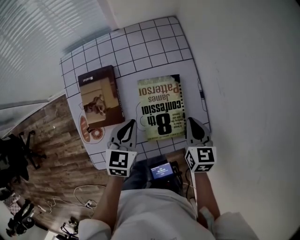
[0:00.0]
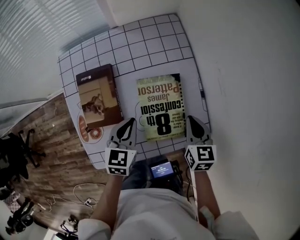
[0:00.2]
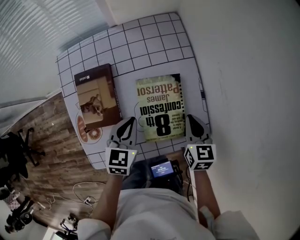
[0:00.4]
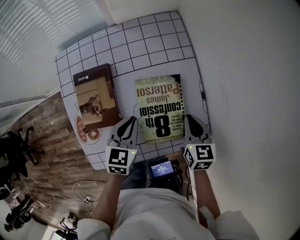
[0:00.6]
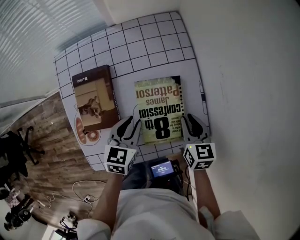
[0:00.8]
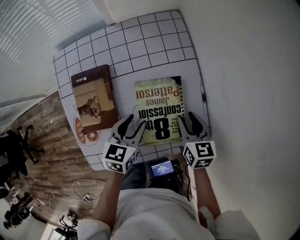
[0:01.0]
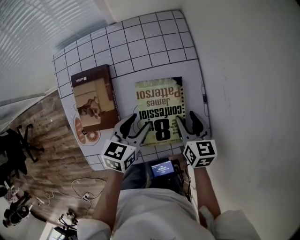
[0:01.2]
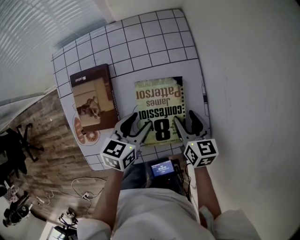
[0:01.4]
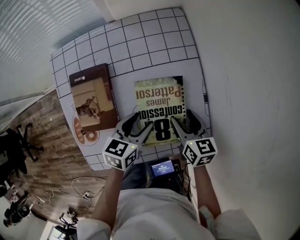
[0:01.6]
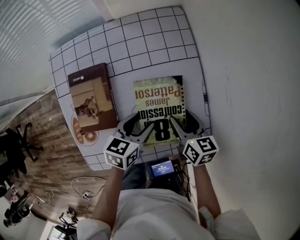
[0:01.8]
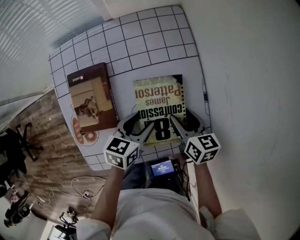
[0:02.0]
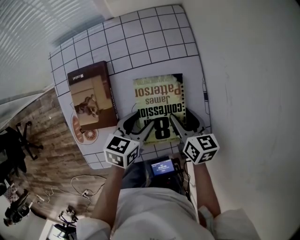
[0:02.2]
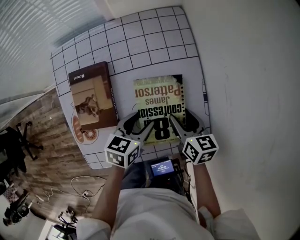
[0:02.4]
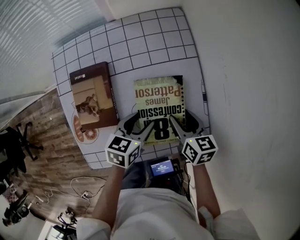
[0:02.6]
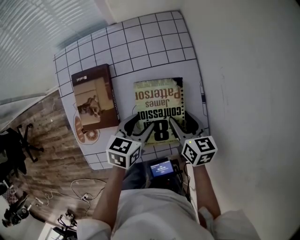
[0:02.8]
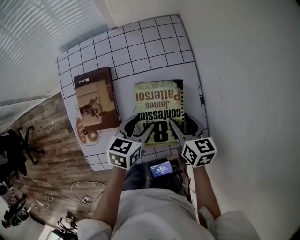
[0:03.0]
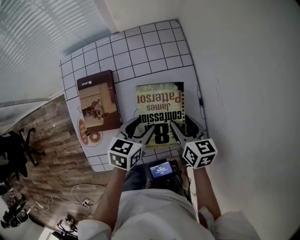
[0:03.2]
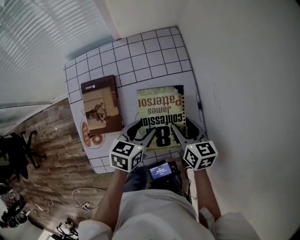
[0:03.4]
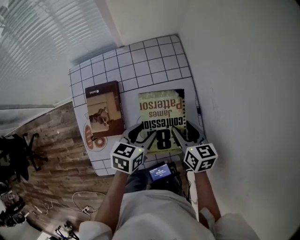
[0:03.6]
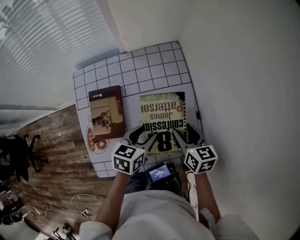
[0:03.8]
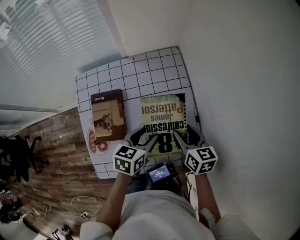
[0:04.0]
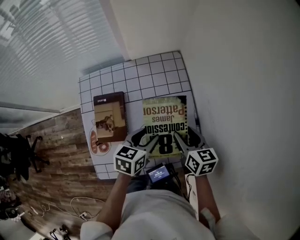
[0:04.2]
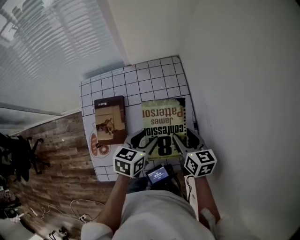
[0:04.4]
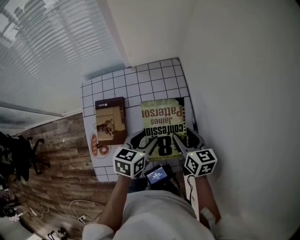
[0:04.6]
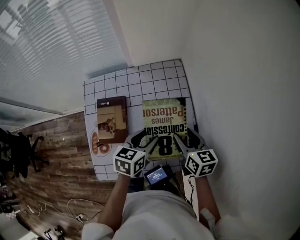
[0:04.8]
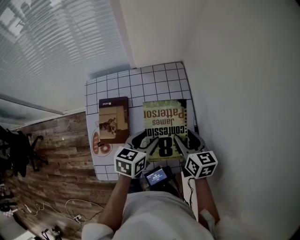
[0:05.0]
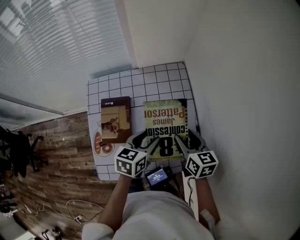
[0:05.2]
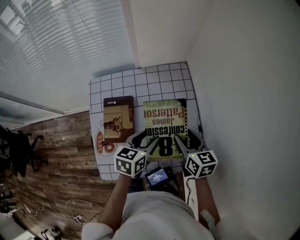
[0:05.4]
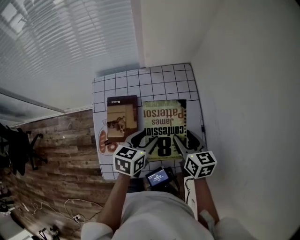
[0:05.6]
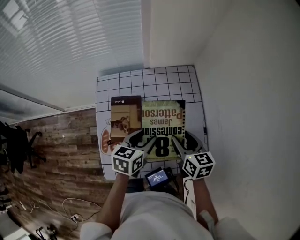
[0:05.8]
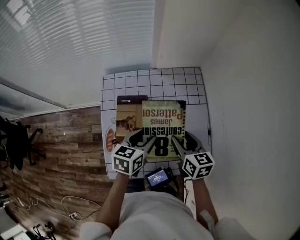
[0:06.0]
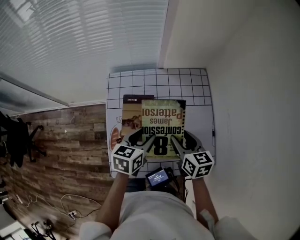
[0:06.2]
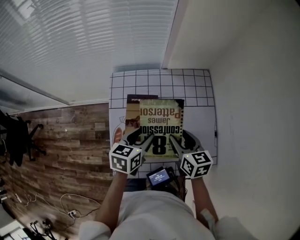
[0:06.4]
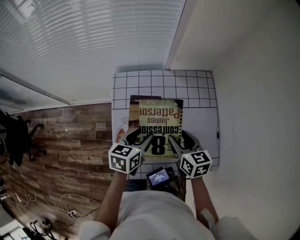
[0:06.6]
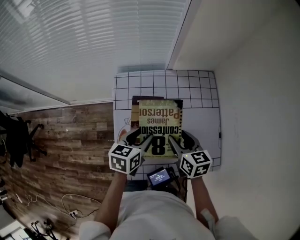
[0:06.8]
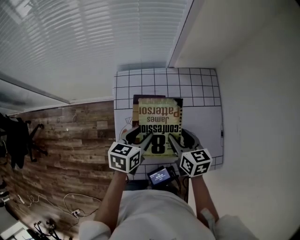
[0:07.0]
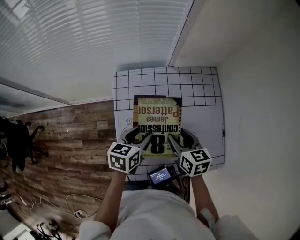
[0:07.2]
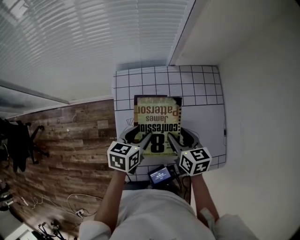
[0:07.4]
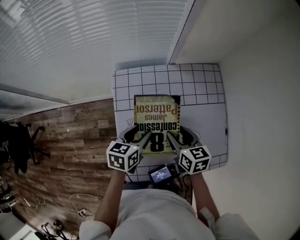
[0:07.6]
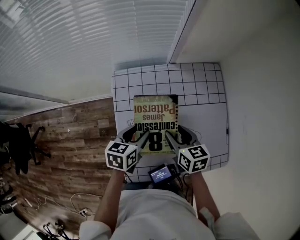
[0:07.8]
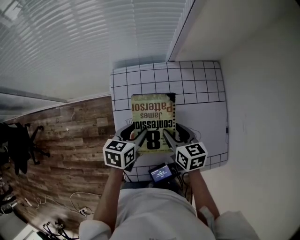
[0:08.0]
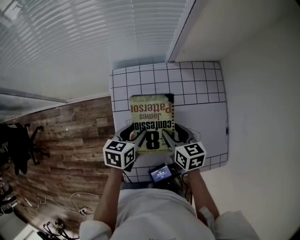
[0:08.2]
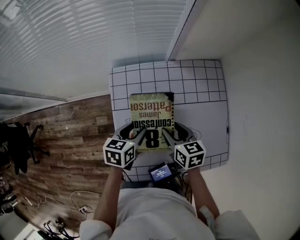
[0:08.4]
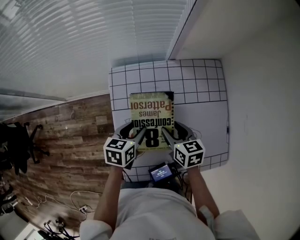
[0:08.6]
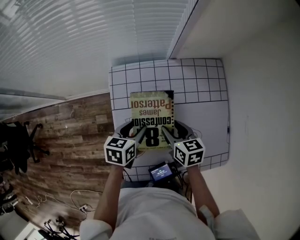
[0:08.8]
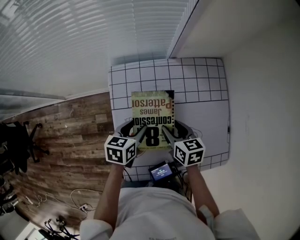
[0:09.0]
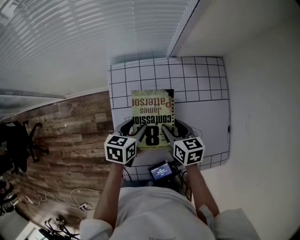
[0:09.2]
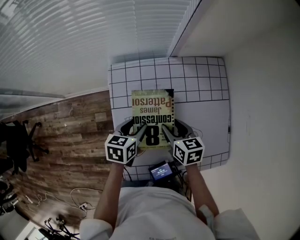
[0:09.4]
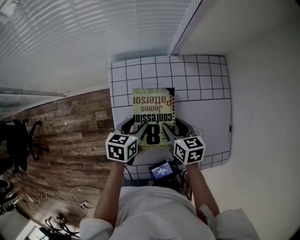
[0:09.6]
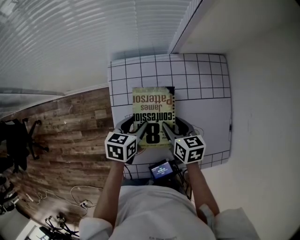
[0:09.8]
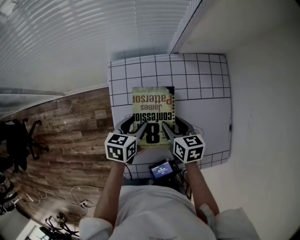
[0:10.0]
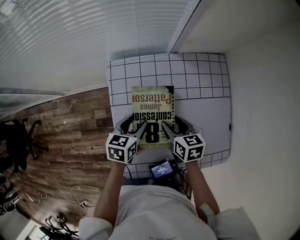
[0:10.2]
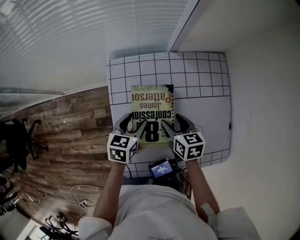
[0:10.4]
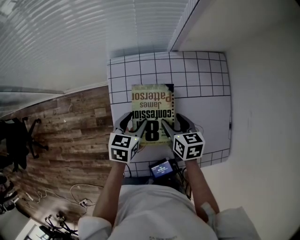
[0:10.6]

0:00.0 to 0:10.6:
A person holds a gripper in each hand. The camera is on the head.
0:00.0 to 0:01.6: The right gripper is displaced downward by some 5 cm, and opens its fingers, while the left gripper shifts by roughly 5 cm, turns by some 20 degrees, and opens its fingers.
0:01.6 to 0:03.0: There are only small adjustments of the grippers.
0:03.0 to 0:04.6: Both grippers move upward, about 10 cm.
0:04.6 to 0:06.0: Both grippers move to the left, approximately 10 cm.
0:06.0 to 0:07.6: Both grippers move to the left, approximately 10 cm.
0:07.6 to 0:09.0: The left gripper ends up roughly 5 cm from where it was. The right gripper ends up approximately 5 cm from where it was.
0:09.0 to 0:10.6: The grippers make only small movements.

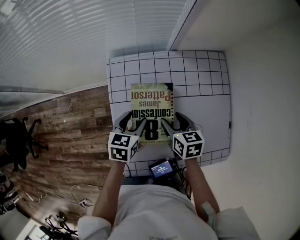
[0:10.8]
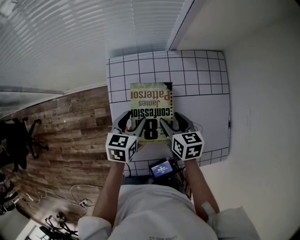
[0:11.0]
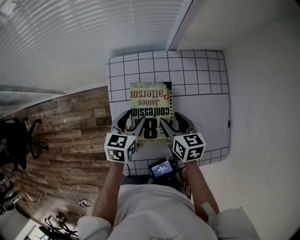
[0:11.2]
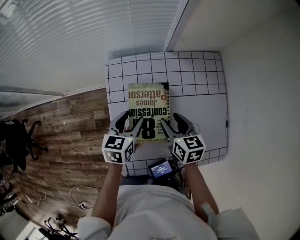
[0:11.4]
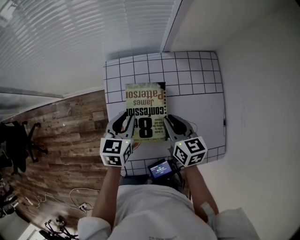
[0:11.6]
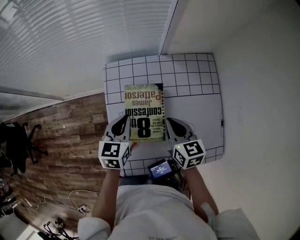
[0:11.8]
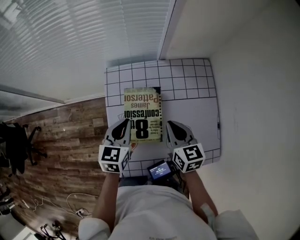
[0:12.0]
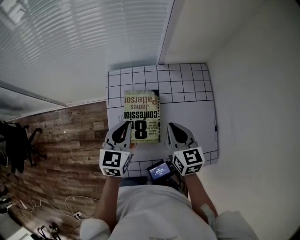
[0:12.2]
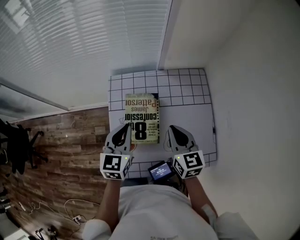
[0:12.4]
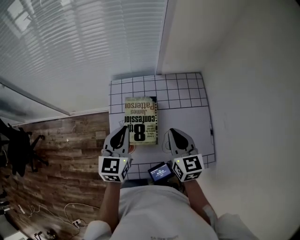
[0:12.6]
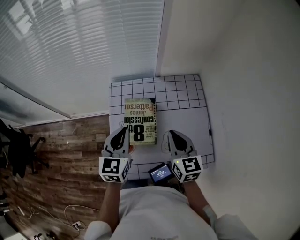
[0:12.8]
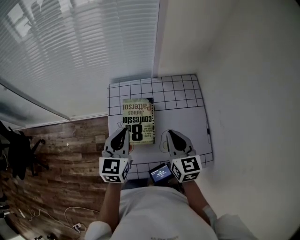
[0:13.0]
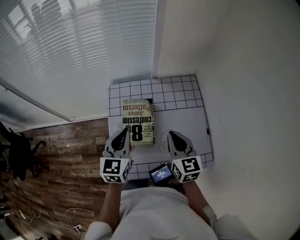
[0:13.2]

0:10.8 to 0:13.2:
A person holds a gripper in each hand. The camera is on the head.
0:10.8 to 0:12.0: The grippers both shift upward by some 10 cm. The left gripper closes its fingers. Meanwhile the right gripper closes its fingers.
0:12.0 to 0:13.2: Both grippers travel together upward and backward, approximately 10 cm.

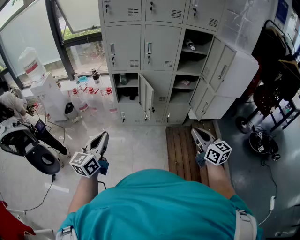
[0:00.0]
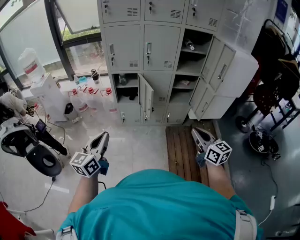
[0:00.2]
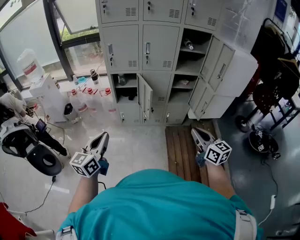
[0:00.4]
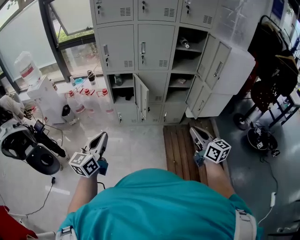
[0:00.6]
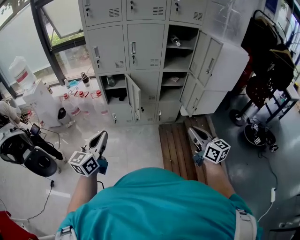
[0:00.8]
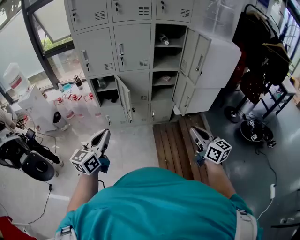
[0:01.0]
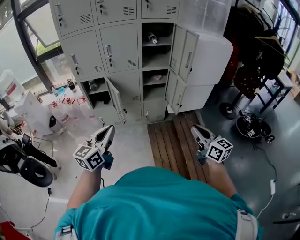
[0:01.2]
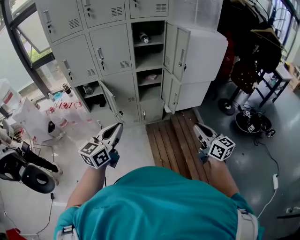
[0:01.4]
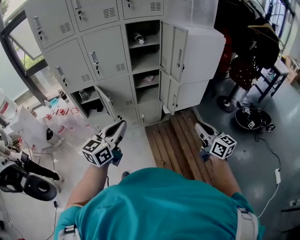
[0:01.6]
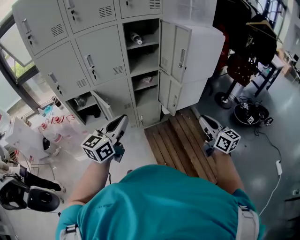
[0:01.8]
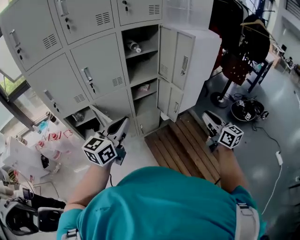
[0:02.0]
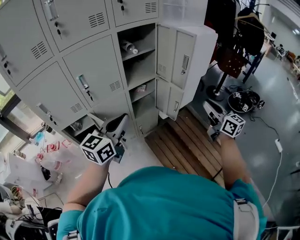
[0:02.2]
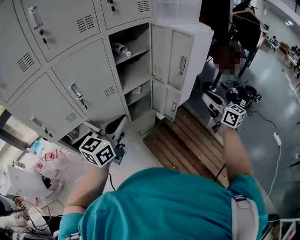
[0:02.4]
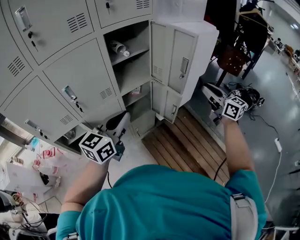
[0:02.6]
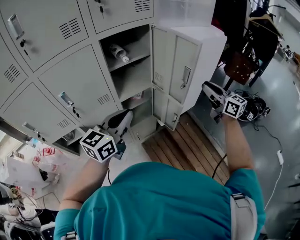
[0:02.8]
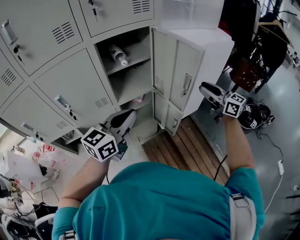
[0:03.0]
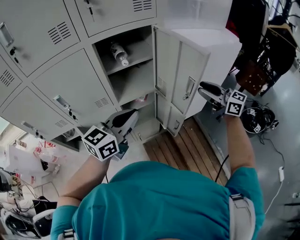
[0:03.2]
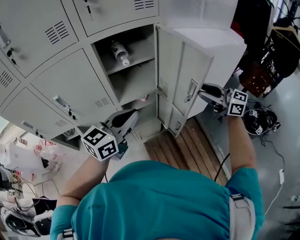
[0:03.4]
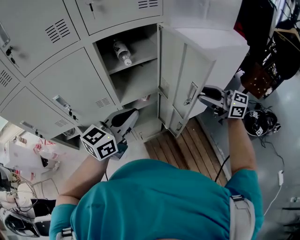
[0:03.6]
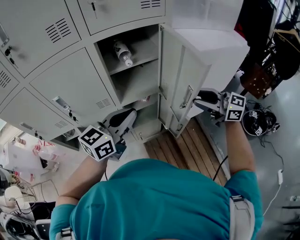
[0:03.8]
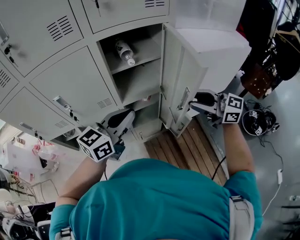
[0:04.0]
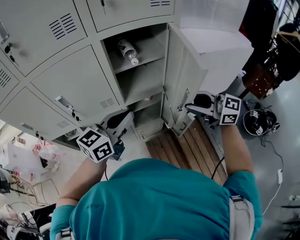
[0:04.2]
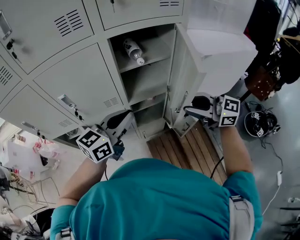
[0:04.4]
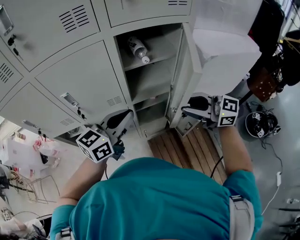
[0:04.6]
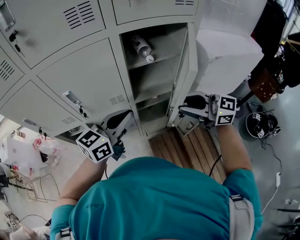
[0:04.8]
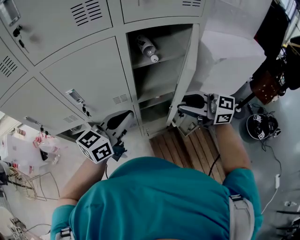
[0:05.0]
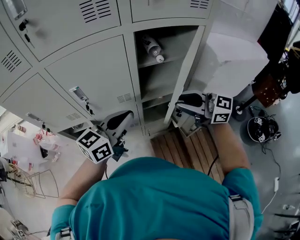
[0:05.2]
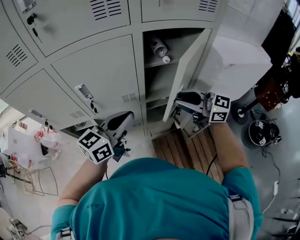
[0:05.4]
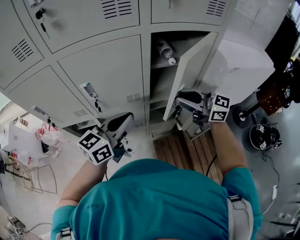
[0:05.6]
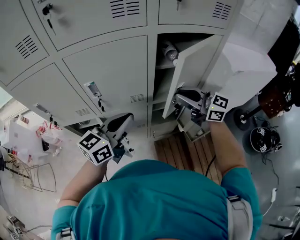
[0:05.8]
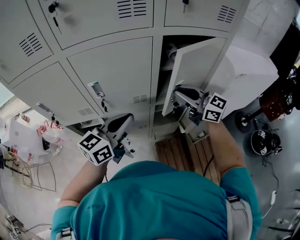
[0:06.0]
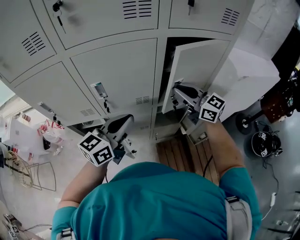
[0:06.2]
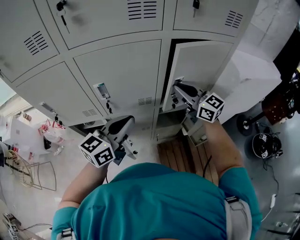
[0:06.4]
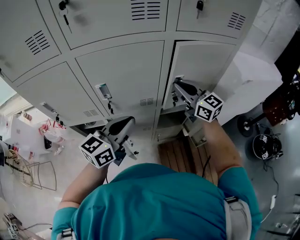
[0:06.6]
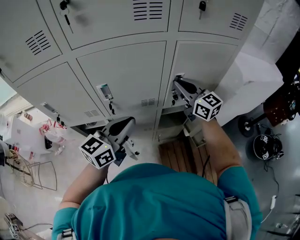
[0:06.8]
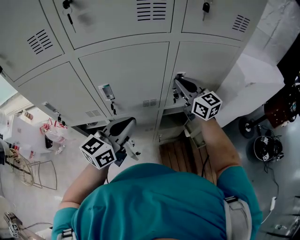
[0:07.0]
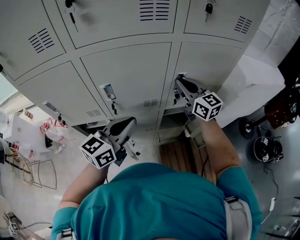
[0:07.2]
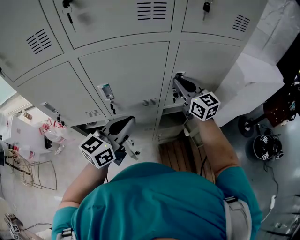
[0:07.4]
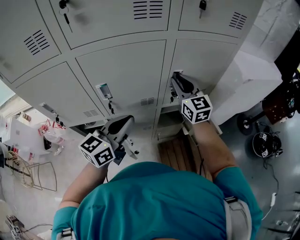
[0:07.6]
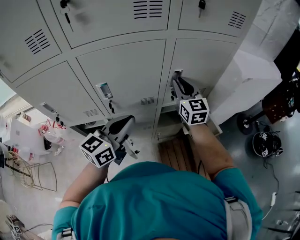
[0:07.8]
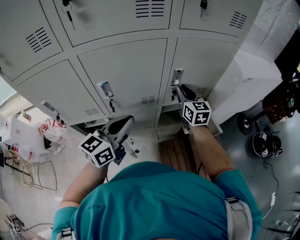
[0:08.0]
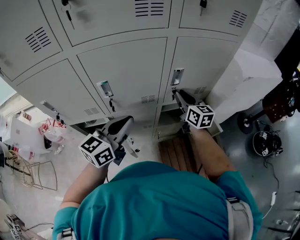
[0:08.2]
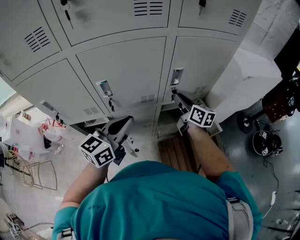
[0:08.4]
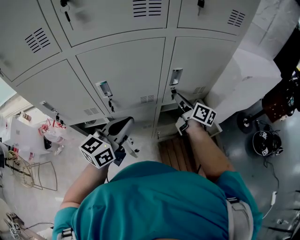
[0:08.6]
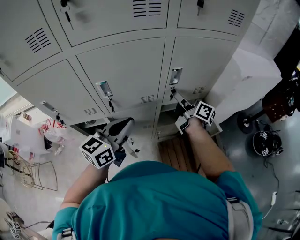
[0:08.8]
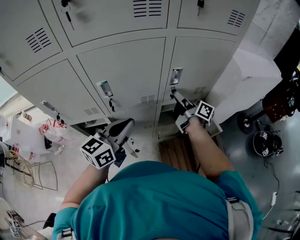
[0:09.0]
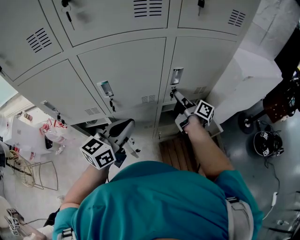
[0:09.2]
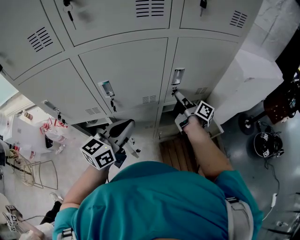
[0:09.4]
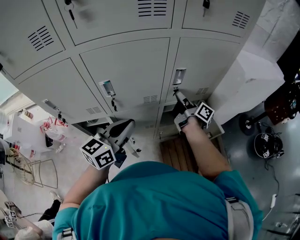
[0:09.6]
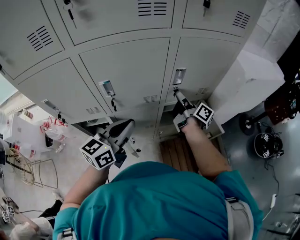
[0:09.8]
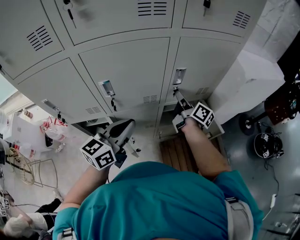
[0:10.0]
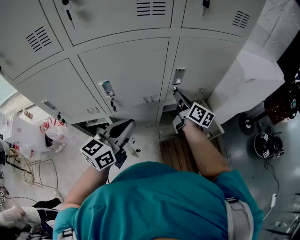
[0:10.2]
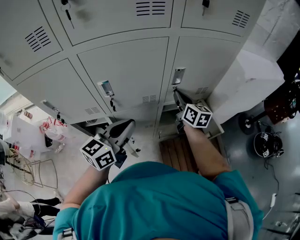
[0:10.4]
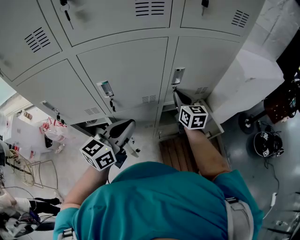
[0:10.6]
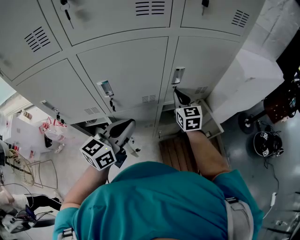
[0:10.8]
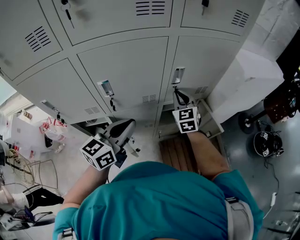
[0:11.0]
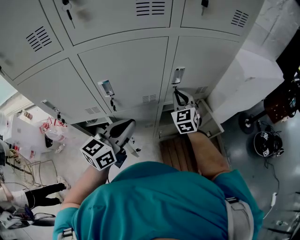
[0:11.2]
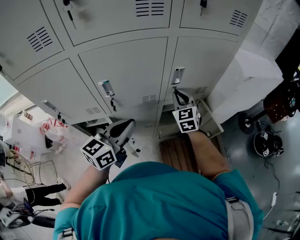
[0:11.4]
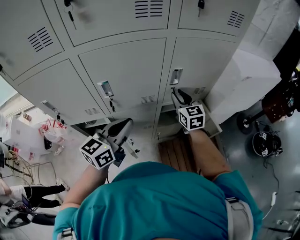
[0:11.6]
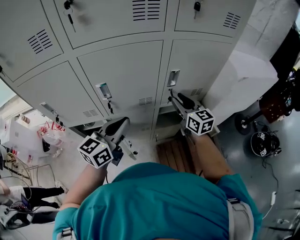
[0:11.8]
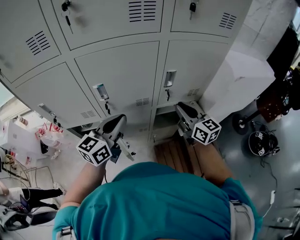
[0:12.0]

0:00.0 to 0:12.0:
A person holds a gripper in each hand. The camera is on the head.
0:00.0 to 0:01.6: The right gripper is displaced to the right by roughly 25 cm. The left gripper is displaced to the right and forward by about 35 cm, and swivels approximately 30 degrees.
0:01.6 to 0:03.0: Both grippers travel together forward, about 40 cm. The right gripper opens.
0:03.0 to 0:04.4: The left gripper shifts approximately 10 cm forward and to the left; the right gripper travels to the left by approximately 15 cm, and swivels approximately 30 degrees.
0:04.4 to 0:06.0: The right gripper shifts about 20 cm to the left and forward, and closes. The left gripper goes some 15 cm to the left.
0:06.0 to 0:07.6: The right gripper heads forward, covering about 10 cm, and swivels roughly 40 degrees.
0:07.6 to 0:09.0: The right gripper shifts roughly 10 cm downward, and twists roughly 80 degrees clockwise, seen from behind.
0:09.0 to 0:10.4: The right gripper rotates around the line of its fingers by some 40 degrees, counterclockwise from behind.
0:10.4 to 0:12.0: The right gripper goes about 10 cm backward, and swivels about 20 degrees.
